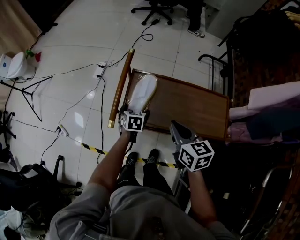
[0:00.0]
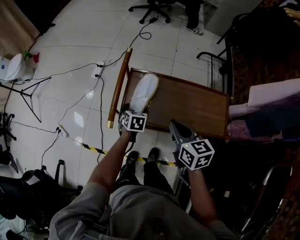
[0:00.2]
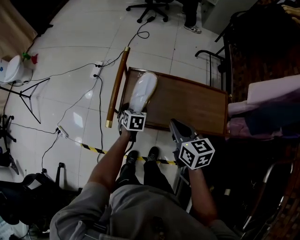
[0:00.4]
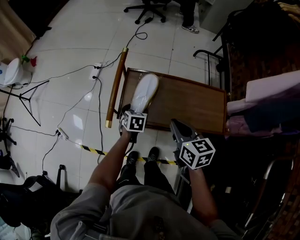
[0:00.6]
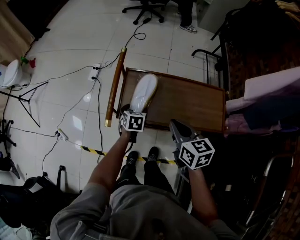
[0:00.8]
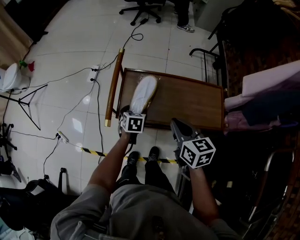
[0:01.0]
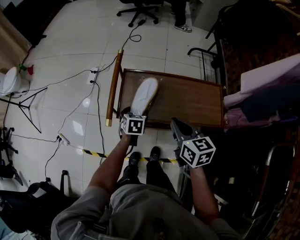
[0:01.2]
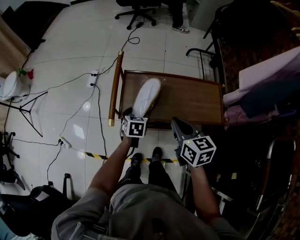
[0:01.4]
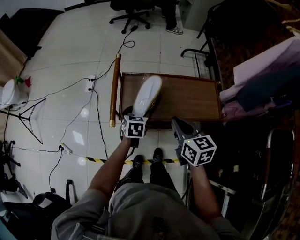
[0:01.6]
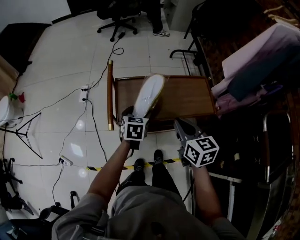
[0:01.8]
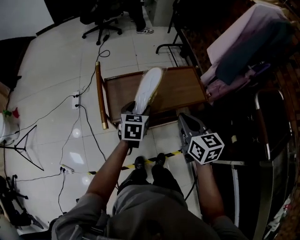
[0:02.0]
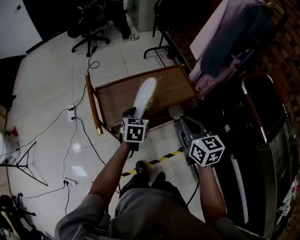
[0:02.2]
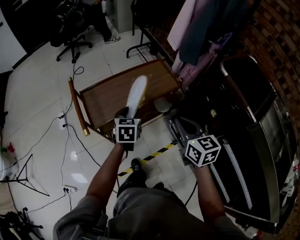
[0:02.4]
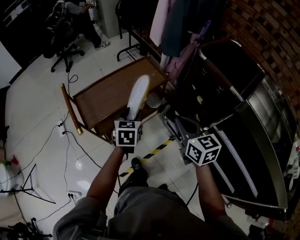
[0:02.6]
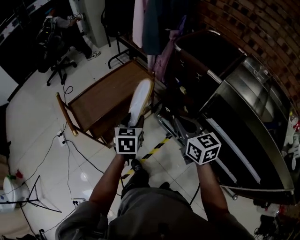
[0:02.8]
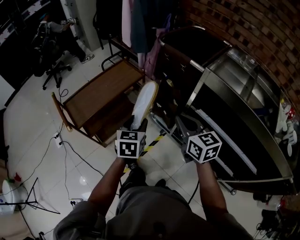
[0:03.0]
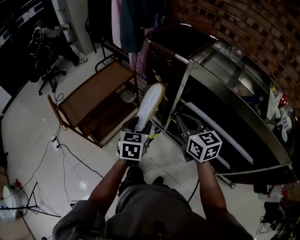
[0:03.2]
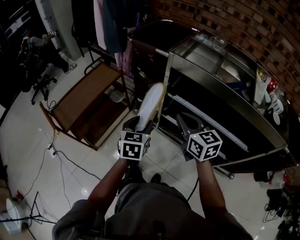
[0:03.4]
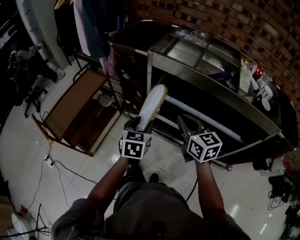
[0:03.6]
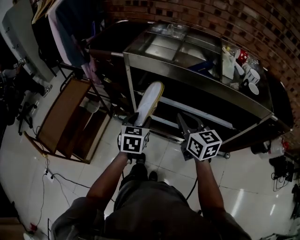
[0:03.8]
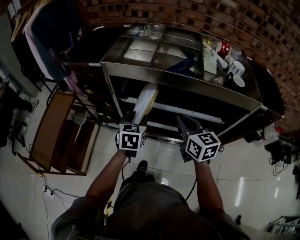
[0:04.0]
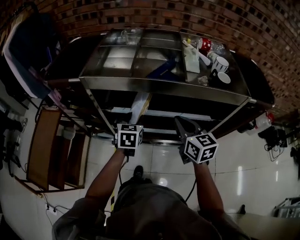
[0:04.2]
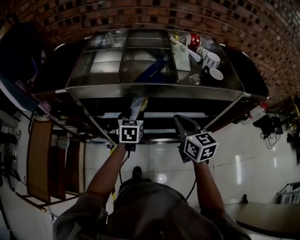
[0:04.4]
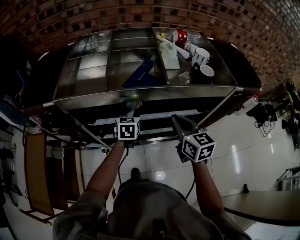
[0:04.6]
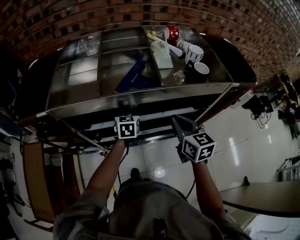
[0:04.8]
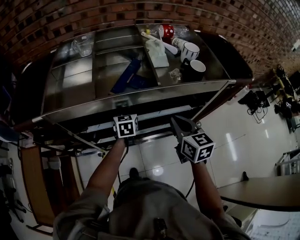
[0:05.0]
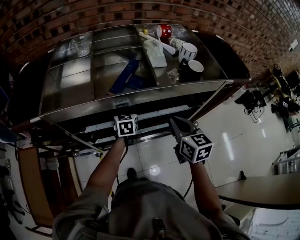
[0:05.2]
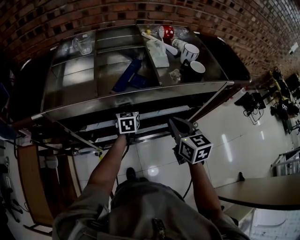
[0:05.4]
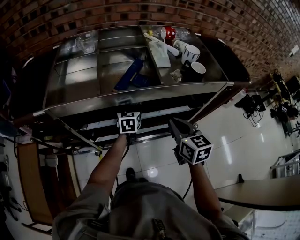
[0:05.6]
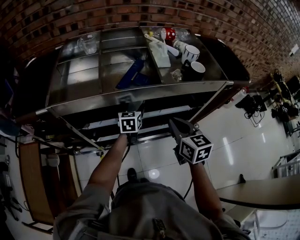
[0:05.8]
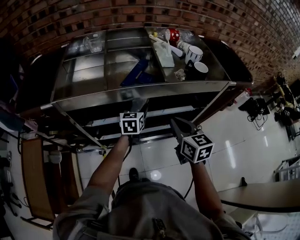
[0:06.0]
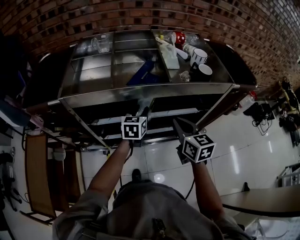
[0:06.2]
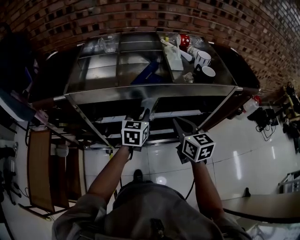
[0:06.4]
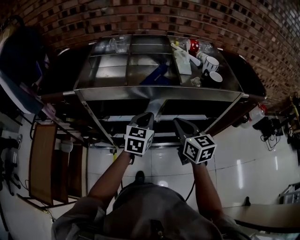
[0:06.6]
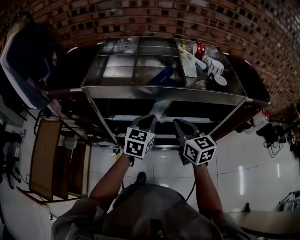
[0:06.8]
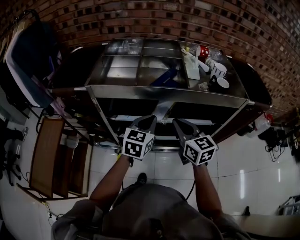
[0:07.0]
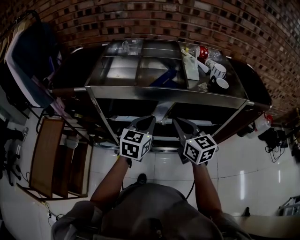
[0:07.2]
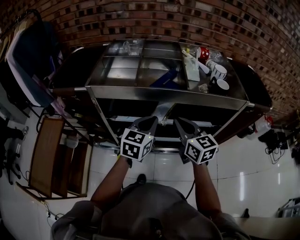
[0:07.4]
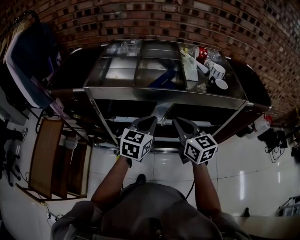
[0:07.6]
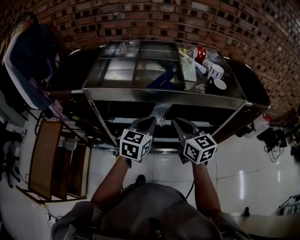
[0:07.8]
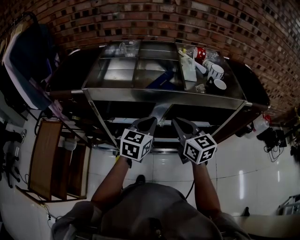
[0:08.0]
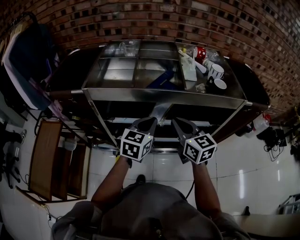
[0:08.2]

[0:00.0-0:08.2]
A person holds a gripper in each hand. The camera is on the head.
0:00.0 to 0:01.6: The left gripper moves upward and backward, roughly 10 cm. Meanwhile the right gripper moves backward, approximately 5 cm.
0:01.6 to 0:03.2: The pair of grippers is taken approximately 50 cm. The left gripper turns by roughly 50 degrees. Meanwhile the right gripper changes its angle by about 50 degrees.
0:03.2 to 0:05.0: The left gripper ends up roughly 50 cm from where it was, and changes its angle by approximately 40 degrees; the right gripper changes place by approximately 40 cm, and changes its angle by approximately 60 degrees.
0:05.0 to 0:06.6: The left gripper heads backward and upward, covering about 15 cm, and closes its fingers, while the right gripper is displaced to the left by roughly 5 cm.
0:06.6 to 0:08.2: The grippers move only a little.

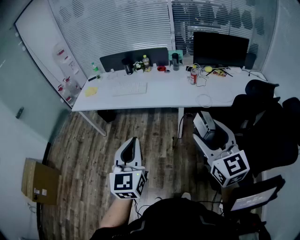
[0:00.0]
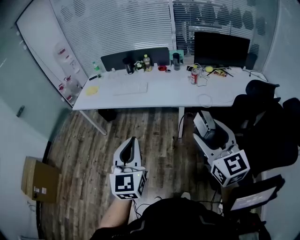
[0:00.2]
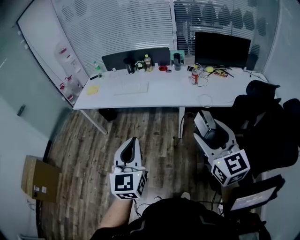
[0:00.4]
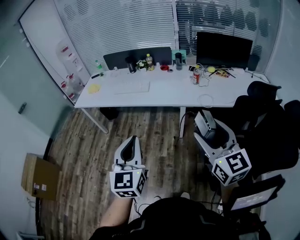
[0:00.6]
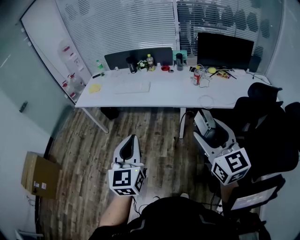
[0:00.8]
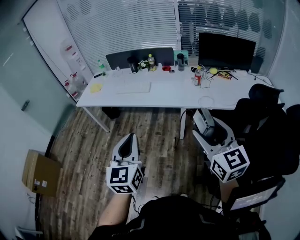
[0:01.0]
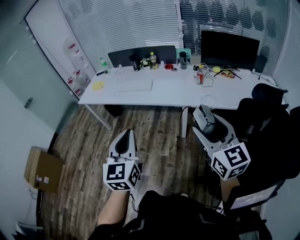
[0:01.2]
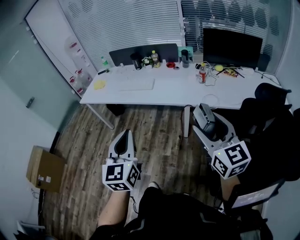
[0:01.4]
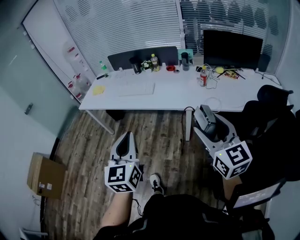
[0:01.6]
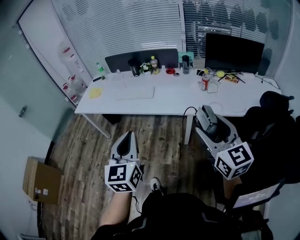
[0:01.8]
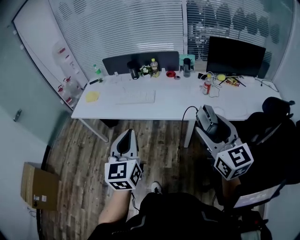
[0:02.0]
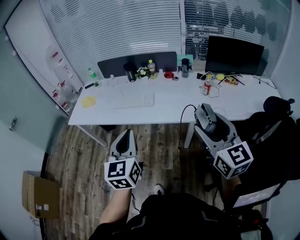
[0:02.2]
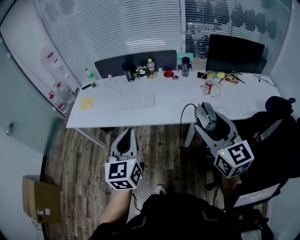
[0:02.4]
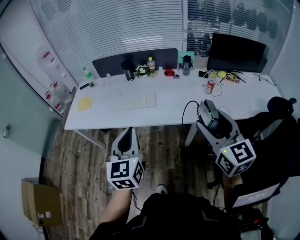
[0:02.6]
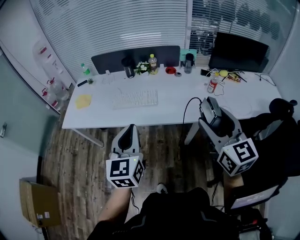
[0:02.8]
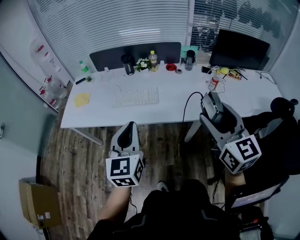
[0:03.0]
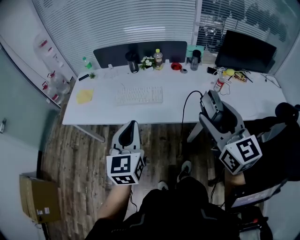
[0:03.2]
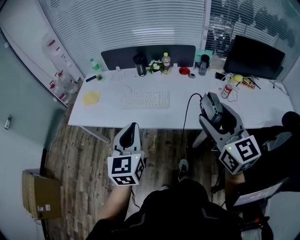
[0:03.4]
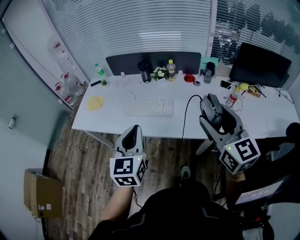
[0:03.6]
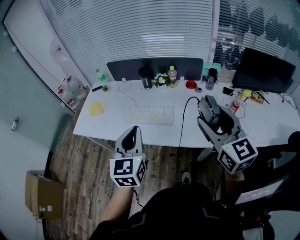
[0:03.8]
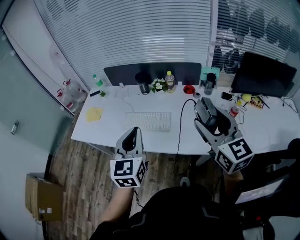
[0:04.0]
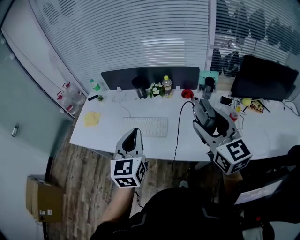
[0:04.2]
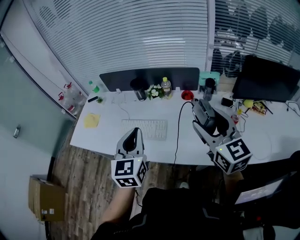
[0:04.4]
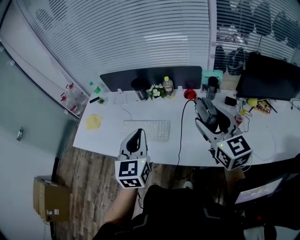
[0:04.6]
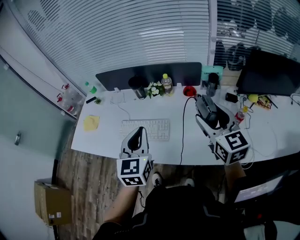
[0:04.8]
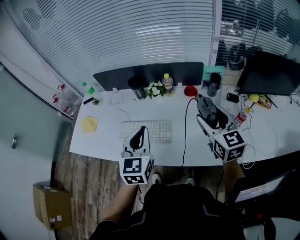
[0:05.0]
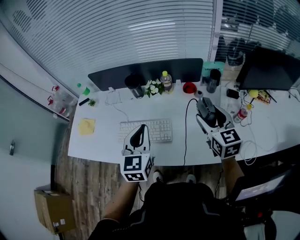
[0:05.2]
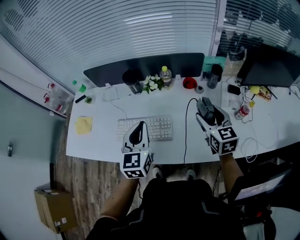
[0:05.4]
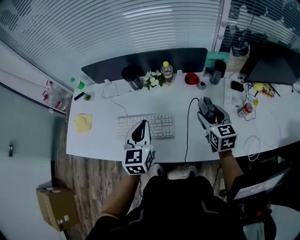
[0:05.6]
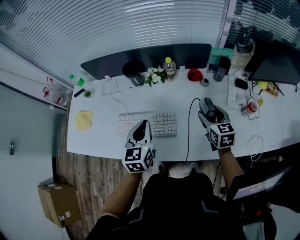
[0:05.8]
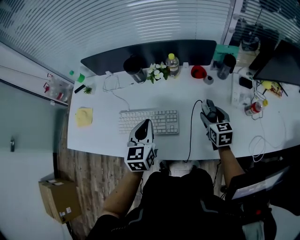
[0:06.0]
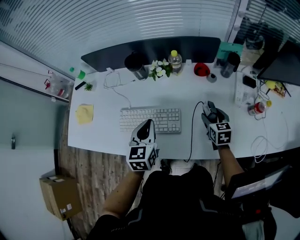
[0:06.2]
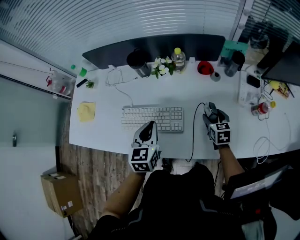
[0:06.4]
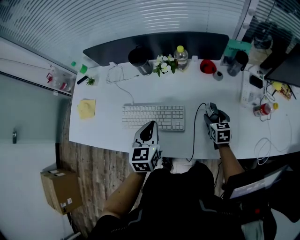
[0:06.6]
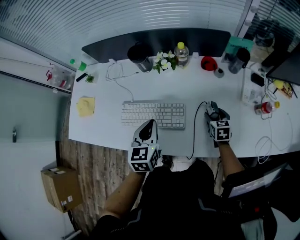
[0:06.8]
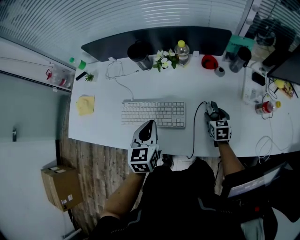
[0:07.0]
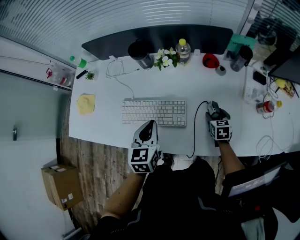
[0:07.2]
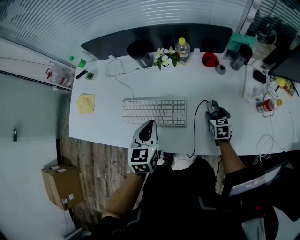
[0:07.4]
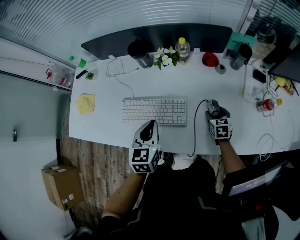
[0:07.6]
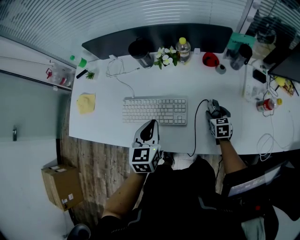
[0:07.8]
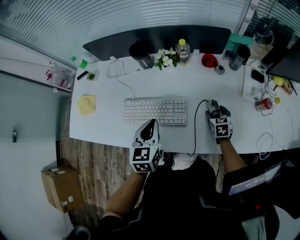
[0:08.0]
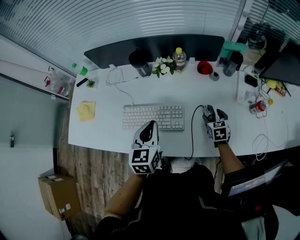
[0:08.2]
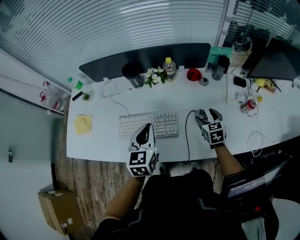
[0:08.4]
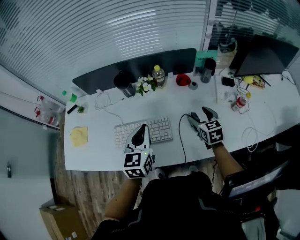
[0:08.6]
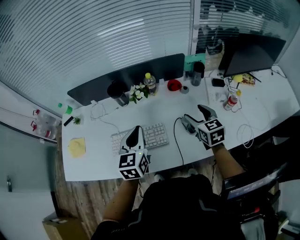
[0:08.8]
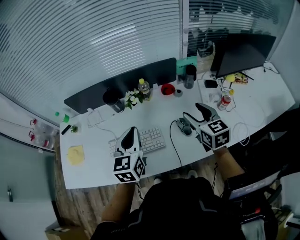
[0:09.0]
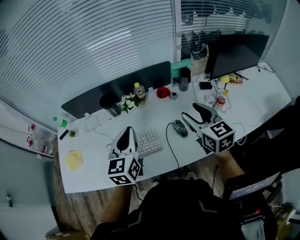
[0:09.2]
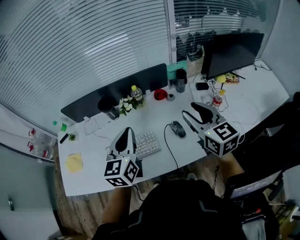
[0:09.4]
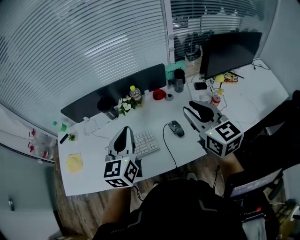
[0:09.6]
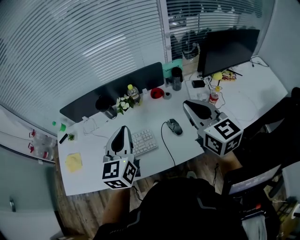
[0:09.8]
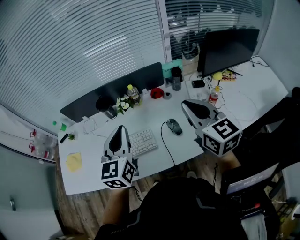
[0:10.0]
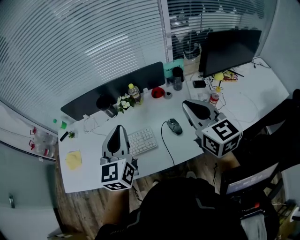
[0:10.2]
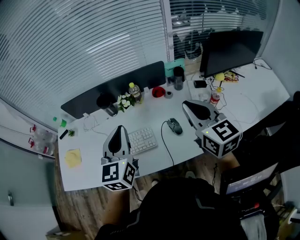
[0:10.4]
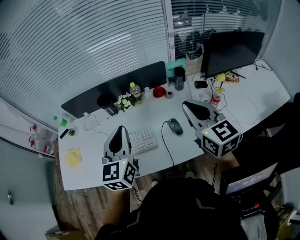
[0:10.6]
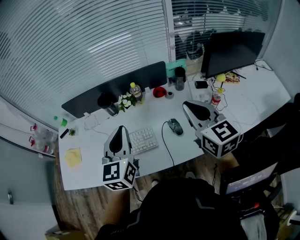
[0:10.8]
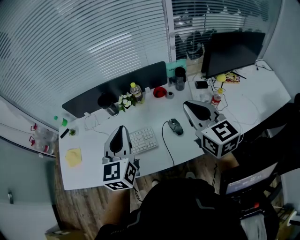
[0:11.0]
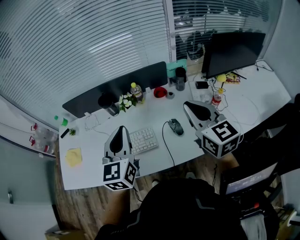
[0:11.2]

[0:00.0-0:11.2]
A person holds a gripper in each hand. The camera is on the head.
0:00.0 to 0:01.6: The two grippers go approximately 5 cm forward.
0:01.6 to 0:03.2: Both grippers travel together forward and to the left, some 30 cm.
0:03.2 to 0:04.8: Both grippers travel together forward and to the right, some 30 cm.
0:04.8 to 0:06.4: The right gripper shifts some 35 cm downward, and tips its fingers downward by some 30 degrees, while the left gripper travels downward and forward by approximately 20 cm.
0:06.4 to 0:08.0: The right gripper is displaced downward by roughly 5 cm.
0:08.0 to 0:09.6: The right gripper goes about 40 cm upward, tilts its fingers some 40 degrees upward, and closes. Meanwhile the left gripper shifts about 20 cm upward, and swivels roughly 30 degrees.
0:09.6 to 0:11.2: There are only small adjustments of the grippers.

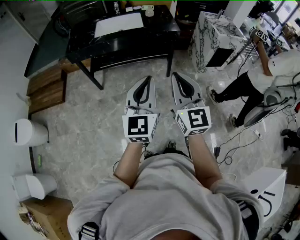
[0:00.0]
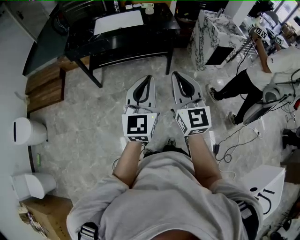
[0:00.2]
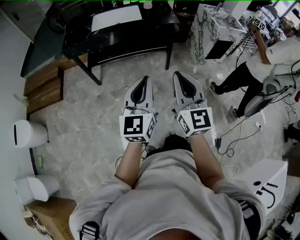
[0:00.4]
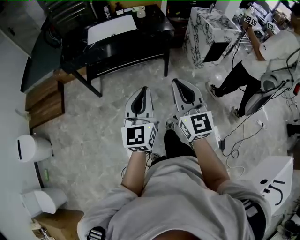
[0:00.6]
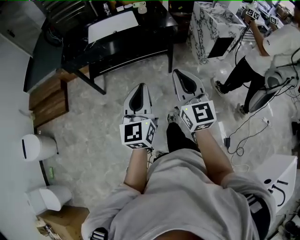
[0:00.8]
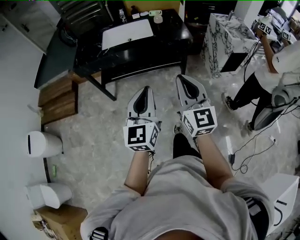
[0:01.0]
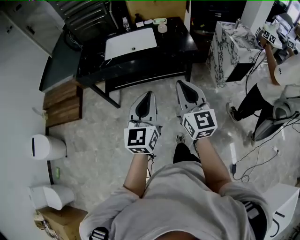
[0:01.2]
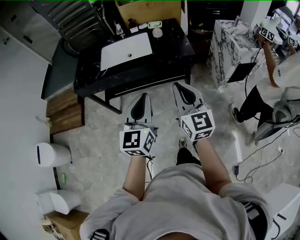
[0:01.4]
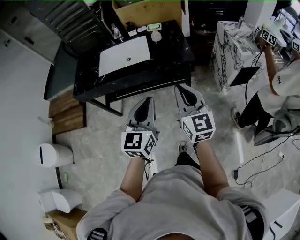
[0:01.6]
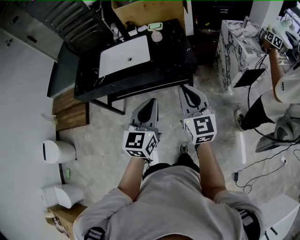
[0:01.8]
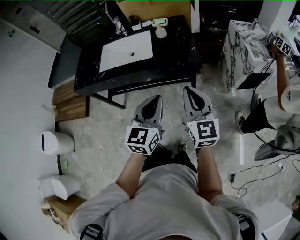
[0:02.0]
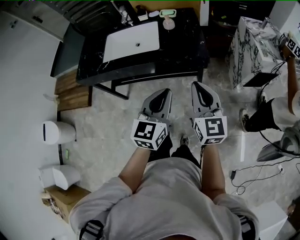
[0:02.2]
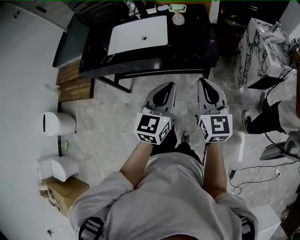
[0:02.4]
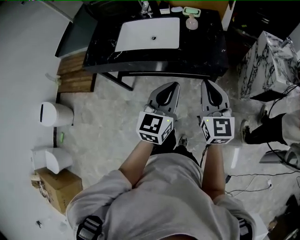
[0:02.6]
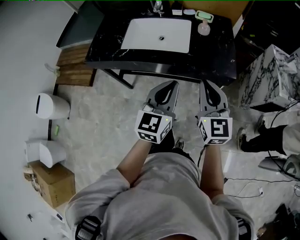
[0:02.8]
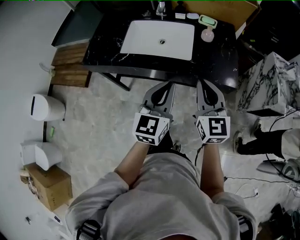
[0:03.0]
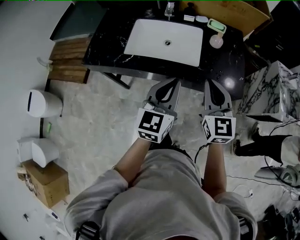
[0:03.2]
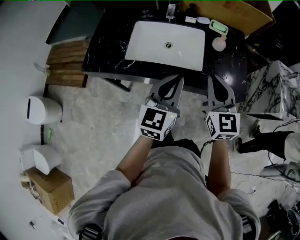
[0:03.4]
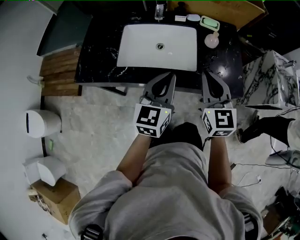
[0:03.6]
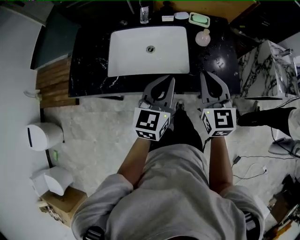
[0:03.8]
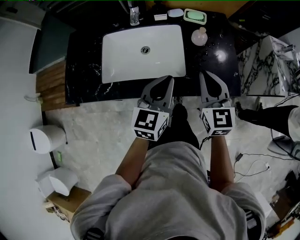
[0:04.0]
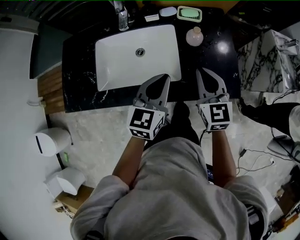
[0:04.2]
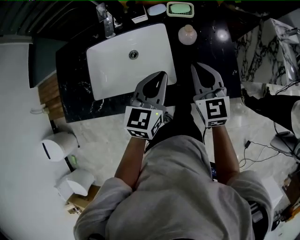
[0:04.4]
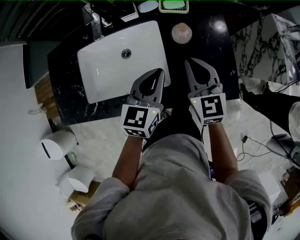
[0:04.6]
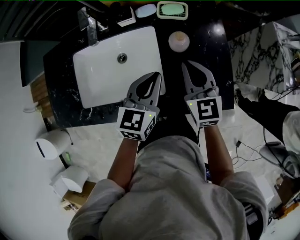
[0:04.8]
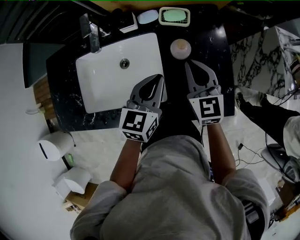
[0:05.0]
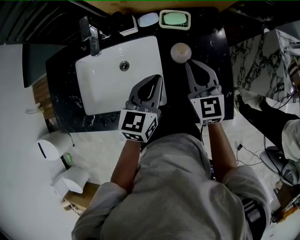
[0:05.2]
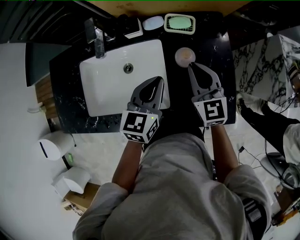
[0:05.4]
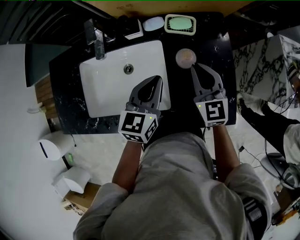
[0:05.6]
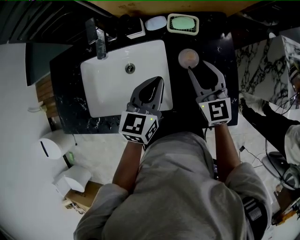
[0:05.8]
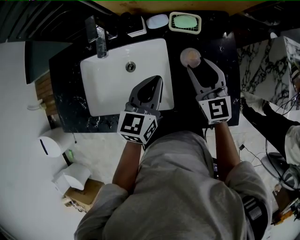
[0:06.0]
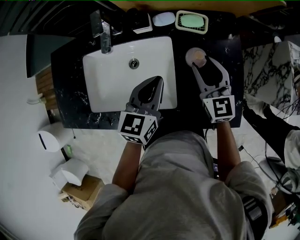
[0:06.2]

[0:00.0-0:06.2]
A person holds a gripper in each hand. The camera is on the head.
0:00.0 to 0:01.6: The two grippers go roughly 30 cm forward.
0:01.6 to 0:03.2: Both grippers travel together forward and to the left, roughly 25 cm.
0:03.2 to 0:04.6: Both grippers travel together forward and downward, approximately 25 cm. The left gripper rotates approximately 20 degrees.
0:04.6 to 0:06.2: Both grippers move forward, approximately 10 cm. The right gripper opens up.
